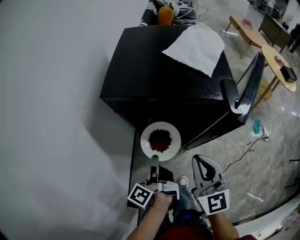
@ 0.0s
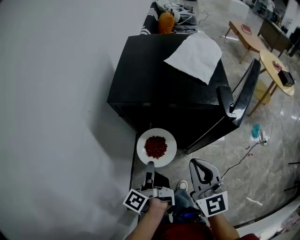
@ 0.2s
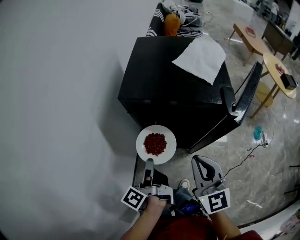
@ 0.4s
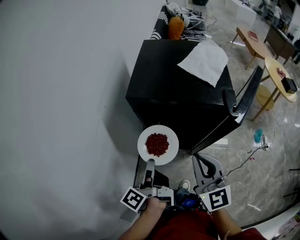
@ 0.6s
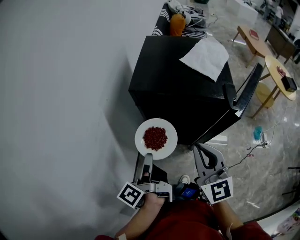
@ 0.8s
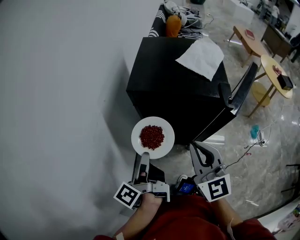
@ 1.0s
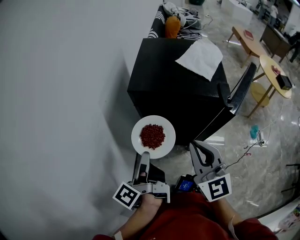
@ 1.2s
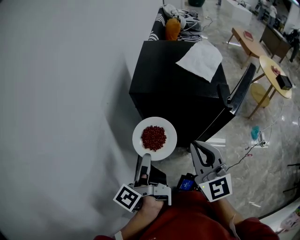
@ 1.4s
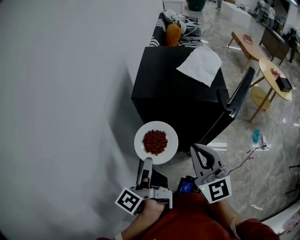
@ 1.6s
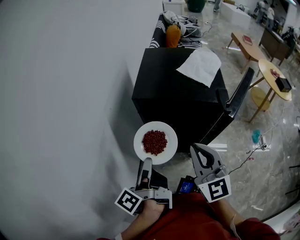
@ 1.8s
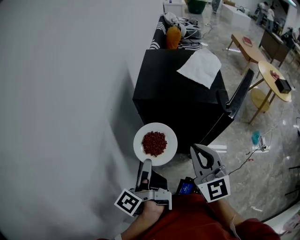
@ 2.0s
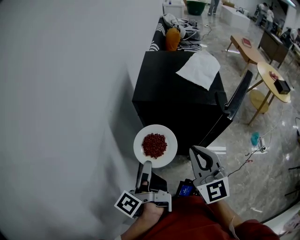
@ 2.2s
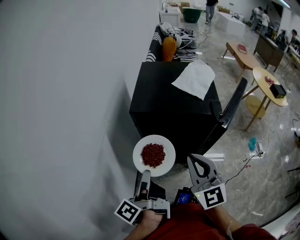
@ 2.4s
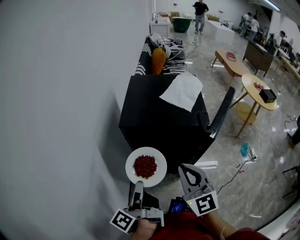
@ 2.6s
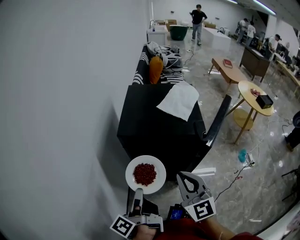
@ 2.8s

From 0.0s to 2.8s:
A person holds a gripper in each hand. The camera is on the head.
From 0.0s to 1.4s: The two grippers go roughly 15 cm upward and to the left.
From 1.4s to 2.8s: The grippers stay close to where they were, moving slightly.

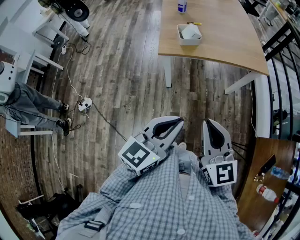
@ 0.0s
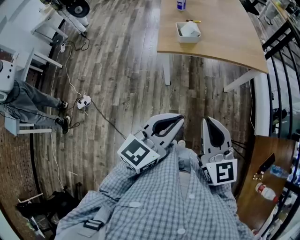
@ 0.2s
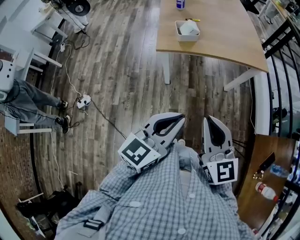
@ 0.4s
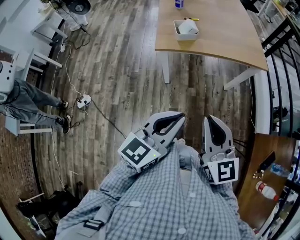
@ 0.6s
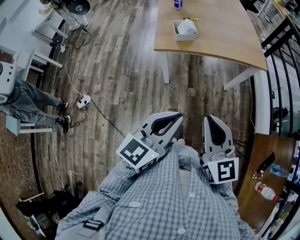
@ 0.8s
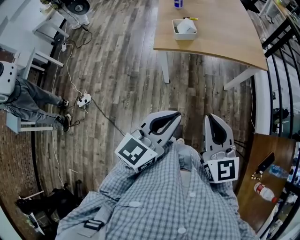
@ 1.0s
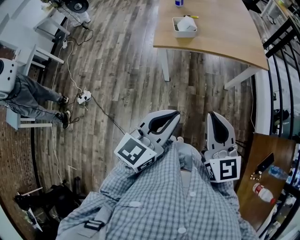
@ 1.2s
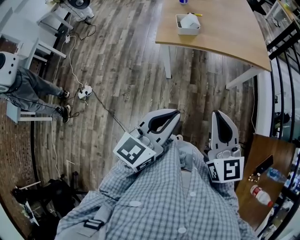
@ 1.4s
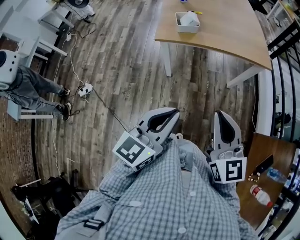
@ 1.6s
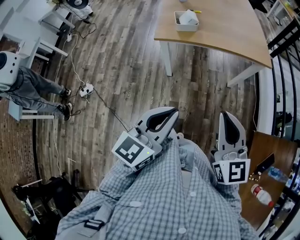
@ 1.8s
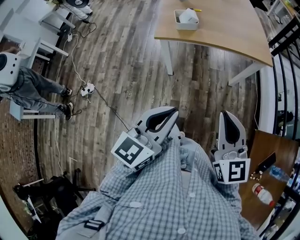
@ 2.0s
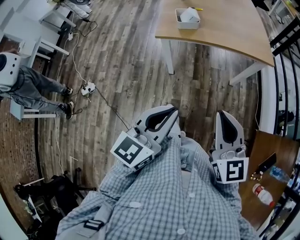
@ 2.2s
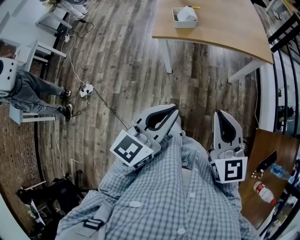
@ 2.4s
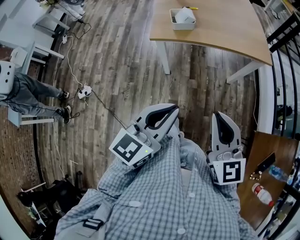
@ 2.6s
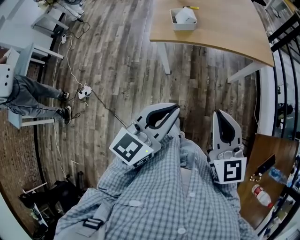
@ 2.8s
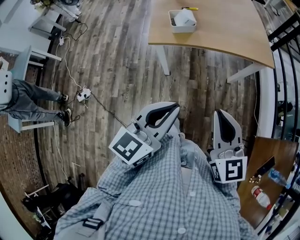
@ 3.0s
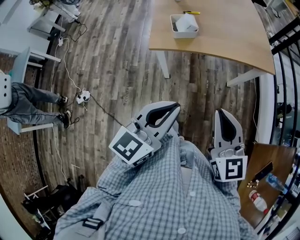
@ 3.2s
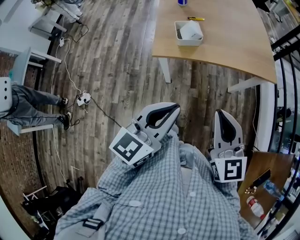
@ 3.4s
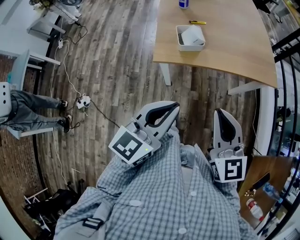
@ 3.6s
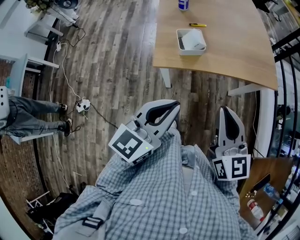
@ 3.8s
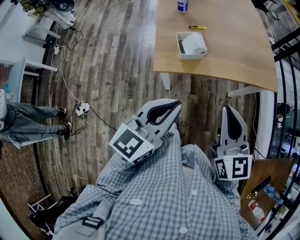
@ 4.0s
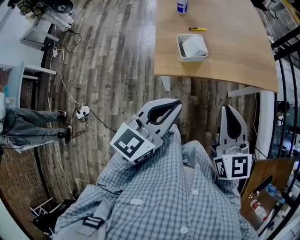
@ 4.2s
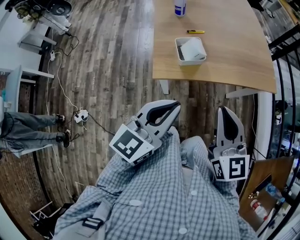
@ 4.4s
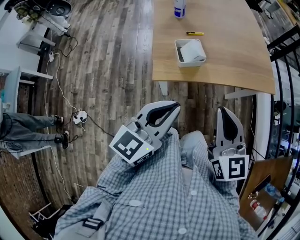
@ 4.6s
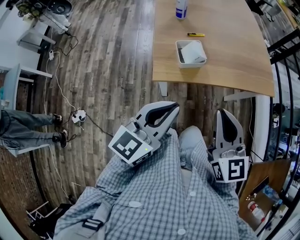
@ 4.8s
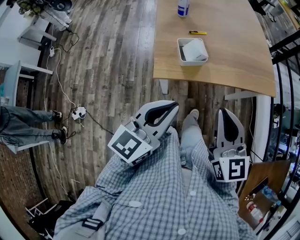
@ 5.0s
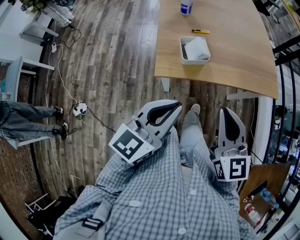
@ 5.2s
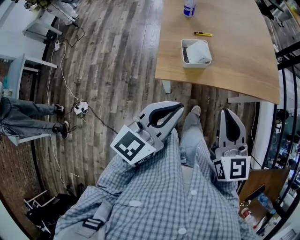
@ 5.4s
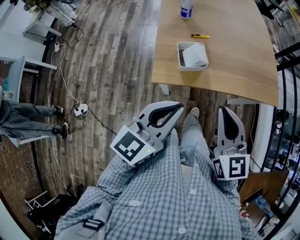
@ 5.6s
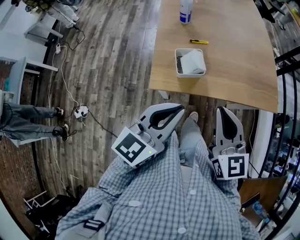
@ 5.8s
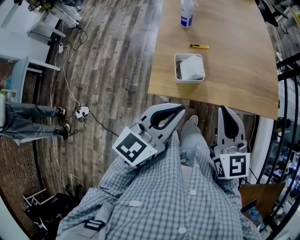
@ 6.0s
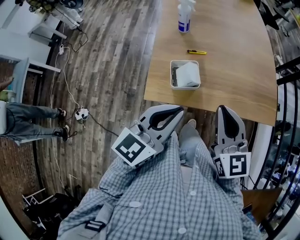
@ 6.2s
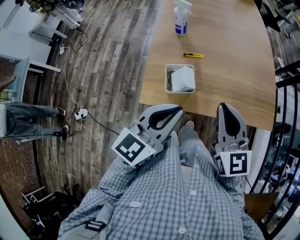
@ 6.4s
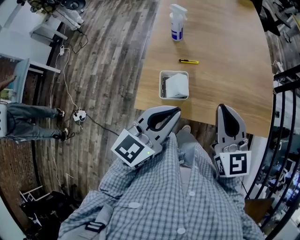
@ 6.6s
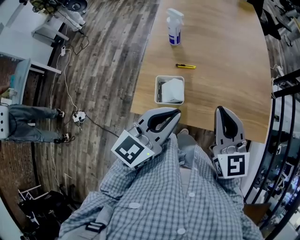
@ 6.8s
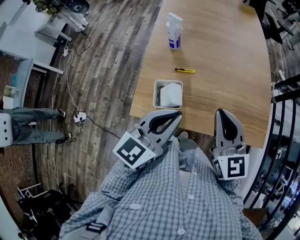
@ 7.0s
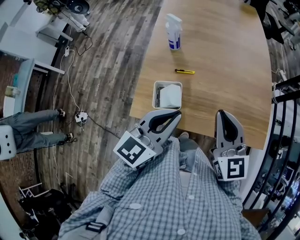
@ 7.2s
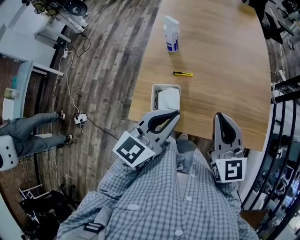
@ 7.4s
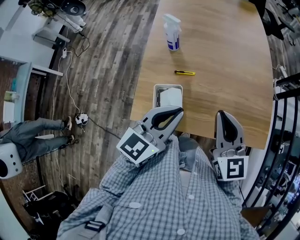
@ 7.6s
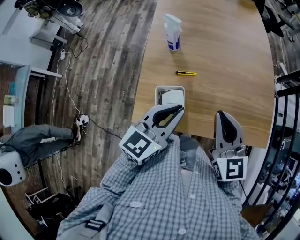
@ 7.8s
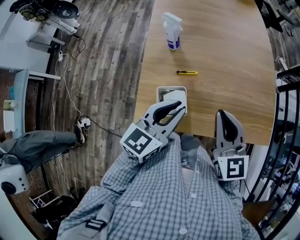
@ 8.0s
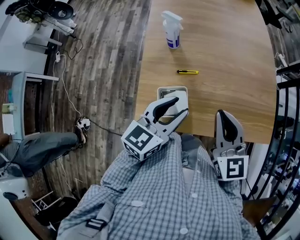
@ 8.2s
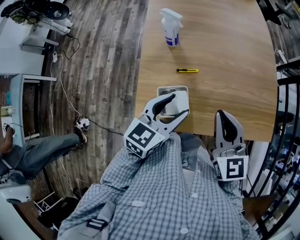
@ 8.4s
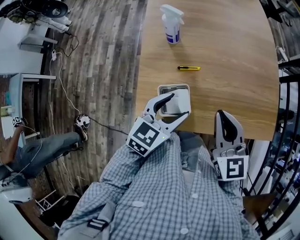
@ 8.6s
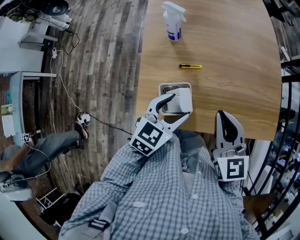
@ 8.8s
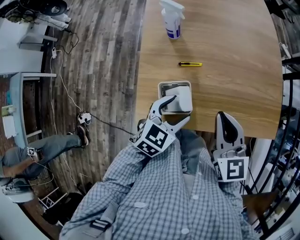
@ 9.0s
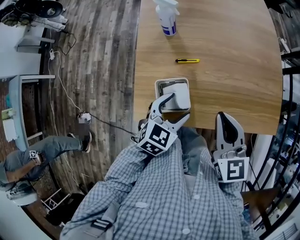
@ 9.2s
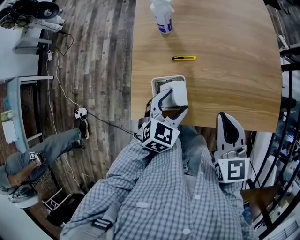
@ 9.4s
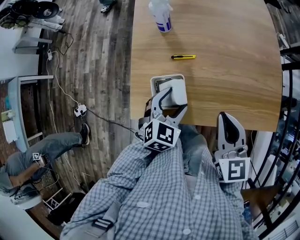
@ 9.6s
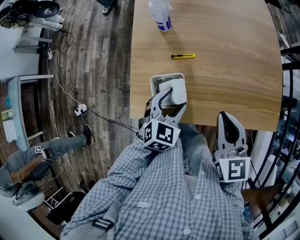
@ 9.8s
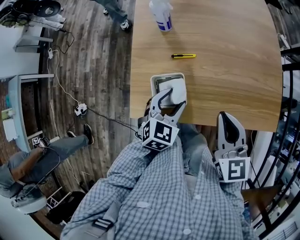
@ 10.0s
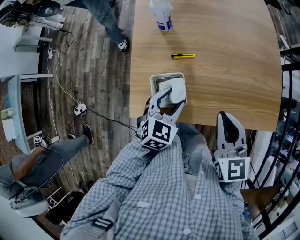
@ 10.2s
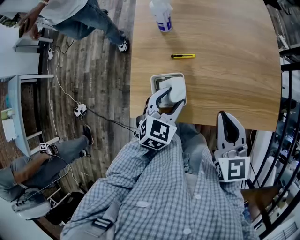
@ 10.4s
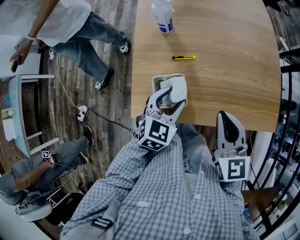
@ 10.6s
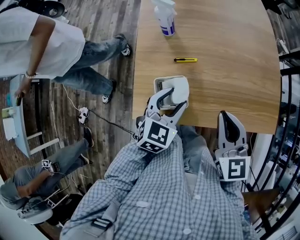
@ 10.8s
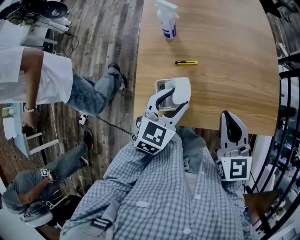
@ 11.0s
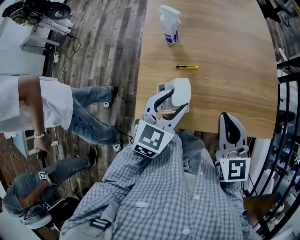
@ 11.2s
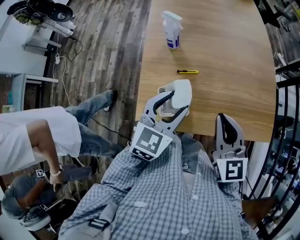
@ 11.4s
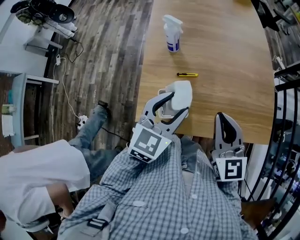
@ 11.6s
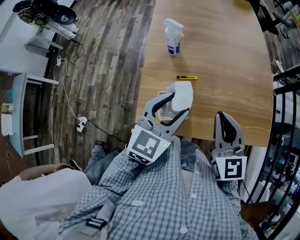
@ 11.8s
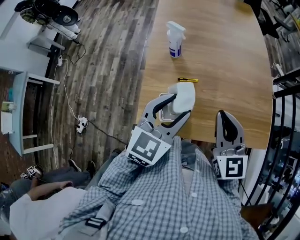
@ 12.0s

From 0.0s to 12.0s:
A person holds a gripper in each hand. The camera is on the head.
From 0.0s to 1.6s: The right gripper moves to the right, approximately 10 cm.
From 1.6s to 3.0s: The grippers both shift forward by some 5 cm.
From 3.0s to 4.4s: The grippers both shift forward and to the left by about 20 cm.
From 4.4s to 6.0s: Both grippers move forward, about 10 cm.
From 6.0s to 7.6s: The grippers both shift forward and to the right by some 15 cm.
From 7.6s to 9.0s: The left gripper moves downward, about 15 cm, changes its angle by some 30 degrees, and opens up; the right gripper goes about 5 cm downward.
From 9.0s to 10.4s: There are only small adjustments of the grippers.
From 10.4s to 12.0s: The right gripper goes some 5 cm upward, while the left gripper travels upward by approximately 20 cm, and turns by roughly 20 degrees.

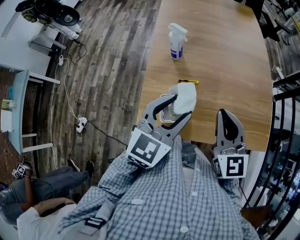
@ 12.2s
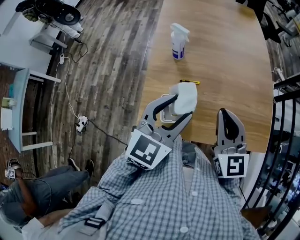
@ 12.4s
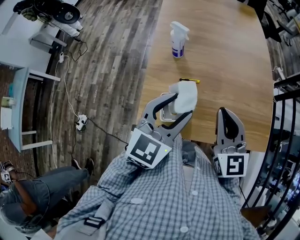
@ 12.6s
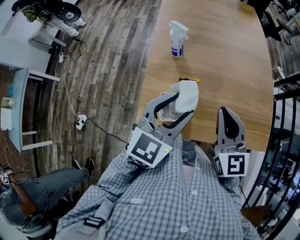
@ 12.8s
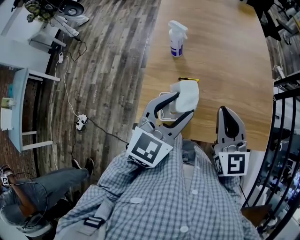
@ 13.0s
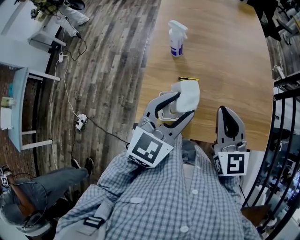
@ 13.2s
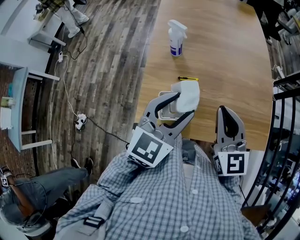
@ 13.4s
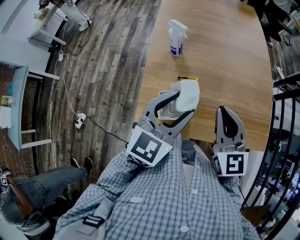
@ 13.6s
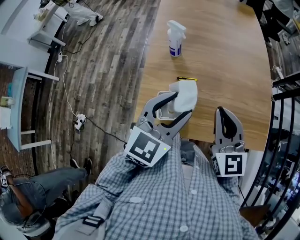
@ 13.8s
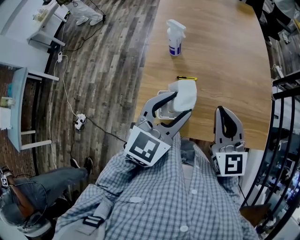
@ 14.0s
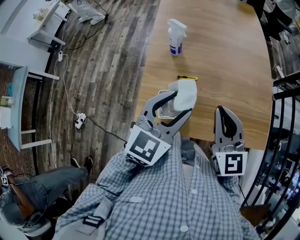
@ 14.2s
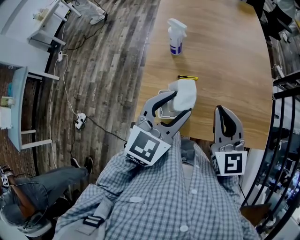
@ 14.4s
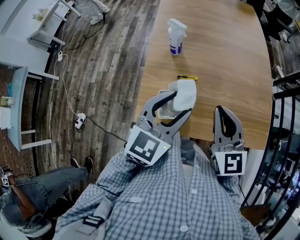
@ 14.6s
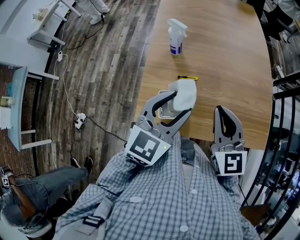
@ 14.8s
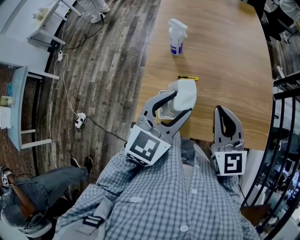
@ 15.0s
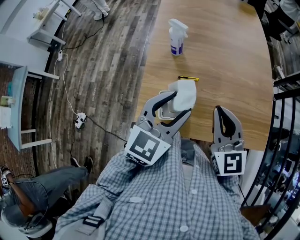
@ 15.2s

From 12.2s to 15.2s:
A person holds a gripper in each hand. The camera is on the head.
From 12.2s to 15.2s: Both grippers stay about where they are.

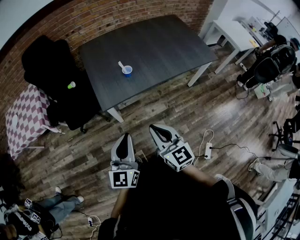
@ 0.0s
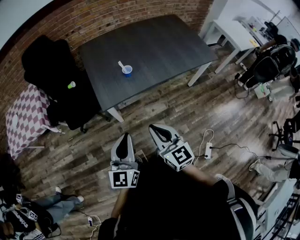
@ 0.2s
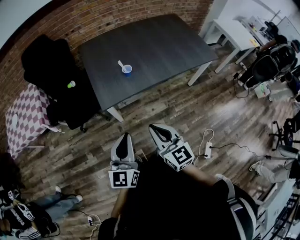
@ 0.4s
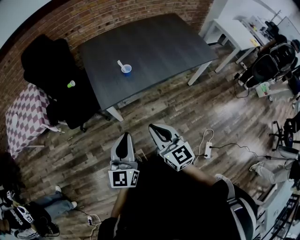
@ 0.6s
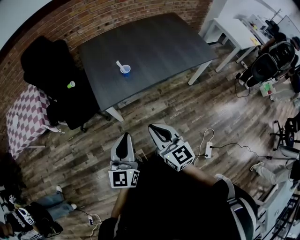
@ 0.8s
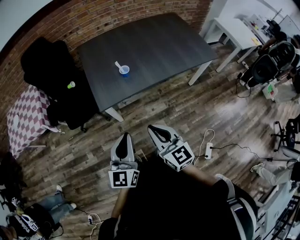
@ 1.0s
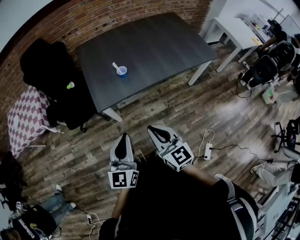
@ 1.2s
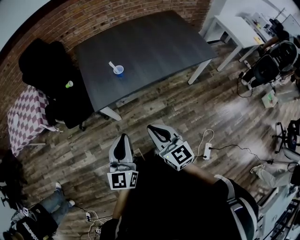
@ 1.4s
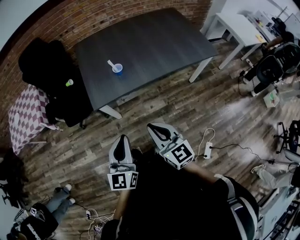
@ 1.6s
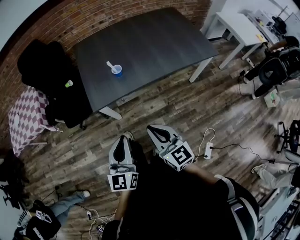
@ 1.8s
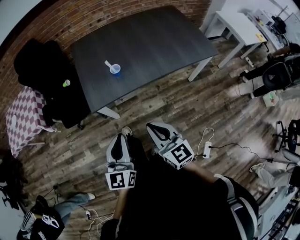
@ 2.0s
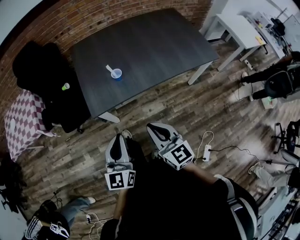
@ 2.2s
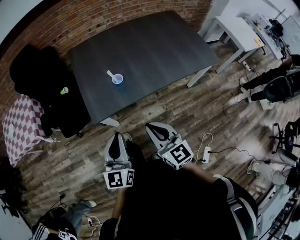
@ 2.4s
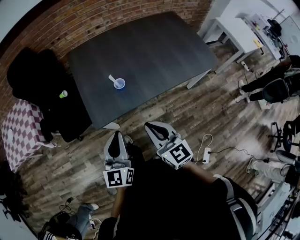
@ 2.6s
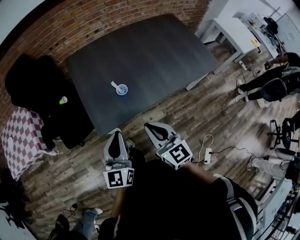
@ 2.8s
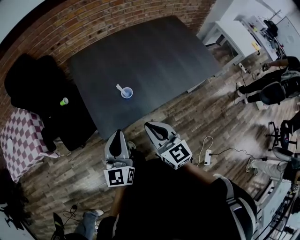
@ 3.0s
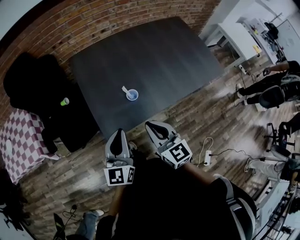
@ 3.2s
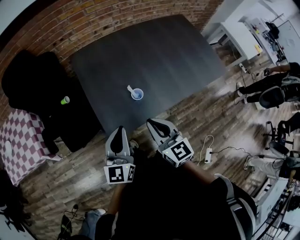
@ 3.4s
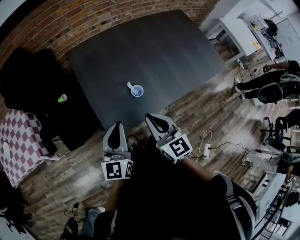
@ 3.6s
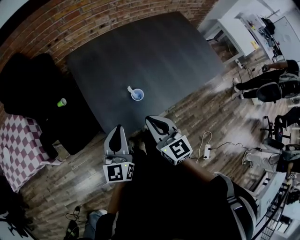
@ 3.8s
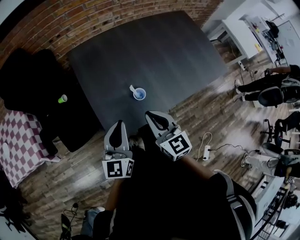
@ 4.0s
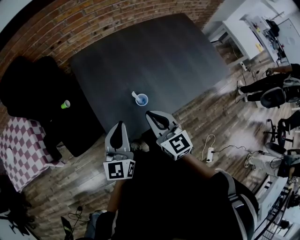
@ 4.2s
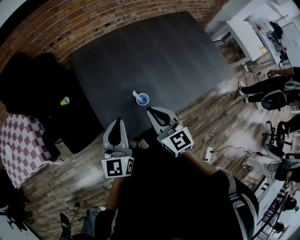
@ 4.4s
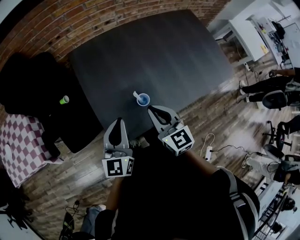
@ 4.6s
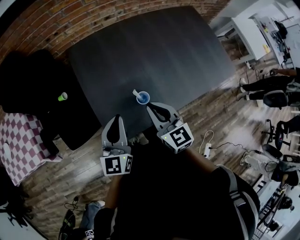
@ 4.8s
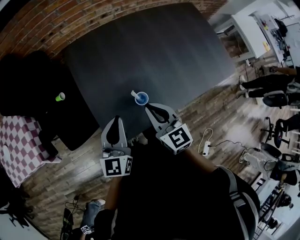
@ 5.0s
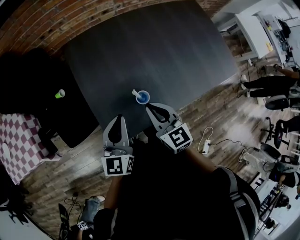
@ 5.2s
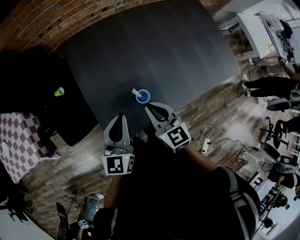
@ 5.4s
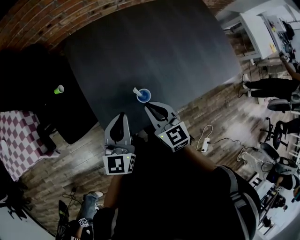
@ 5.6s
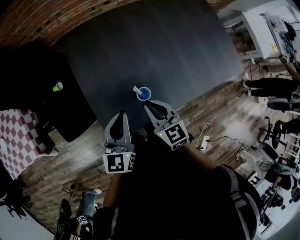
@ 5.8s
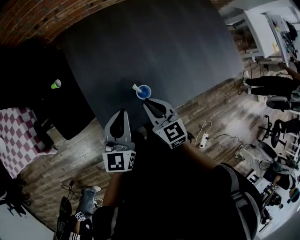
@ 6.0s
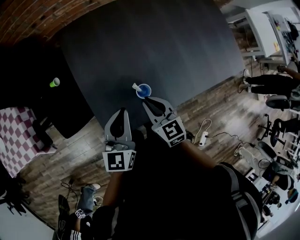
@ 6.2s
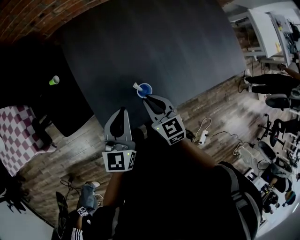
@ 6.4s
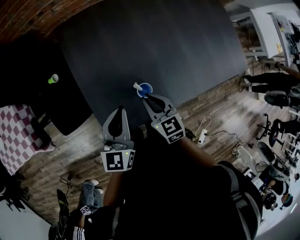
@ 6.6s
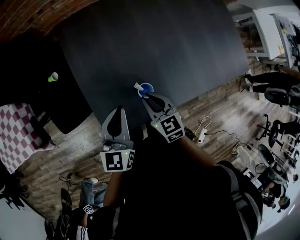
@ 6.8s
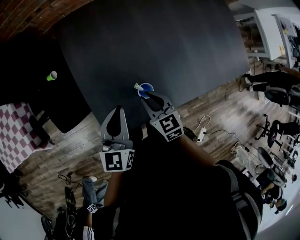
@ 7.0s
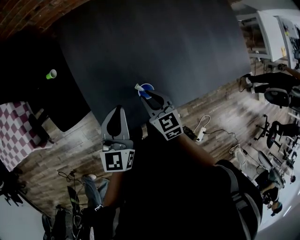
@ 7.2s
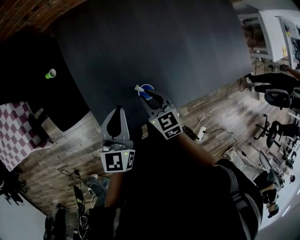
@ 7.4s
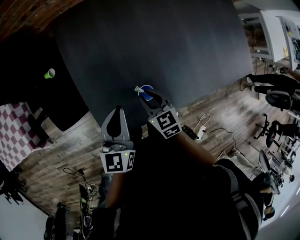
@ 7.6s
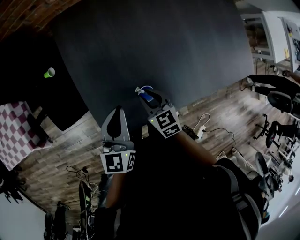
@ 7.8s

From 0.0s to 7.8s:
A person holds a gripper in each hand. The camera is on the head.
From 0.0s to 1.6s: Both grippers move to the right, some 10 cm.
From 1.6s to 3.2s: The grippers both shift forward by some 25 cm.
From 3.2s to 4.6s: The two grippers go approximately 15 cm forward.
From 4.6s to 6.2s: The left gripper goes roughly 5 cm downward, while the right gripper travels downward by some 10 cm.
From 6.2s to 7.8s: The left gripper changes place by about 5 cm, while the right gripper moves downward, approximately 10 cm.
